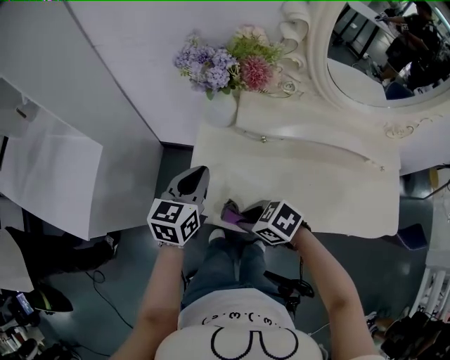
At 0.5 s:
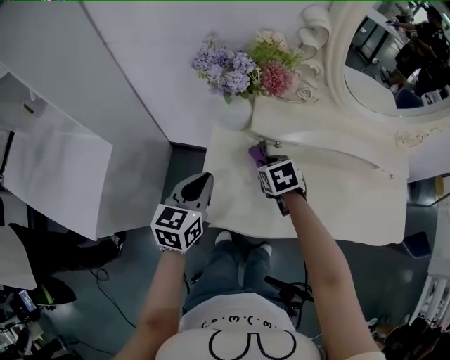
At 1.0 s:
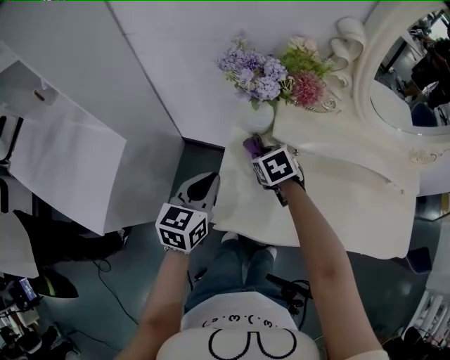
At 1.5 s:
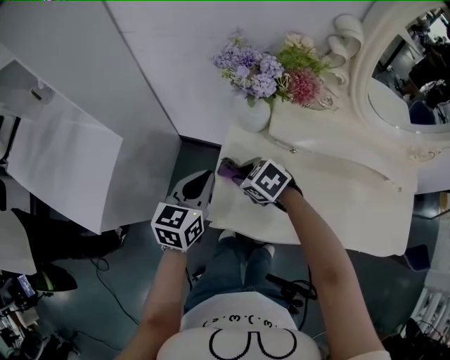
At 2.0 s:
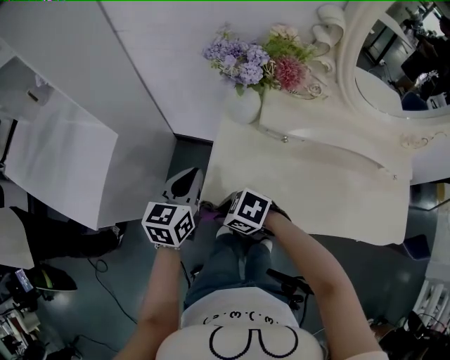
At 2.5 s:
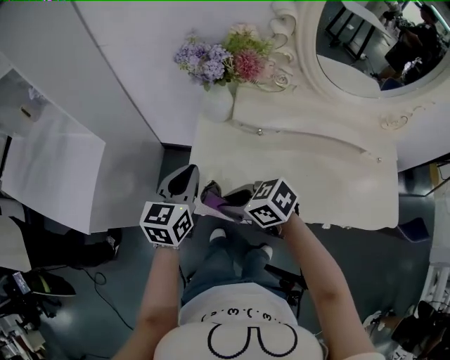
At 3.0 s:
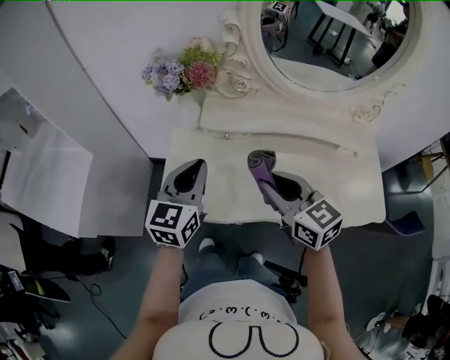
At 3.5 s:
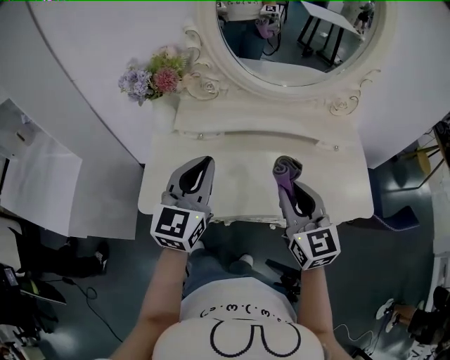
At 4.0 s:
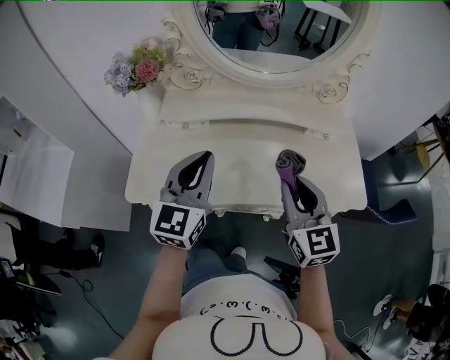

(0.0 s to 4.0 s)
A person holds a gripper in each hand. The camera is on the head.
0.0 s - 2.0 s: The left gripper moves some 10 cm.
2.0 s - 4.0 s: The right gripper moves approximately 50 cm, and tips its fingers upward by roughly 40 degrees. The left gripper moves about 40 cm, and swivels some 30 degrees.

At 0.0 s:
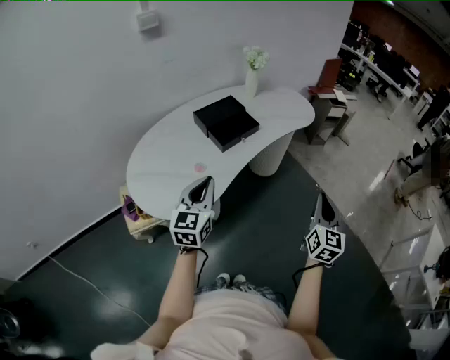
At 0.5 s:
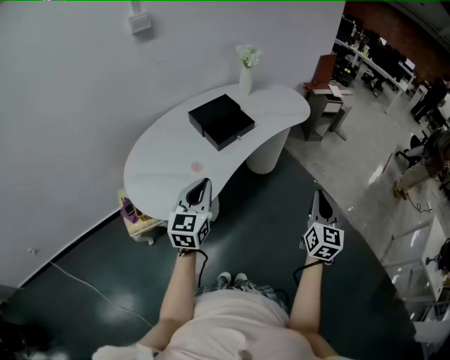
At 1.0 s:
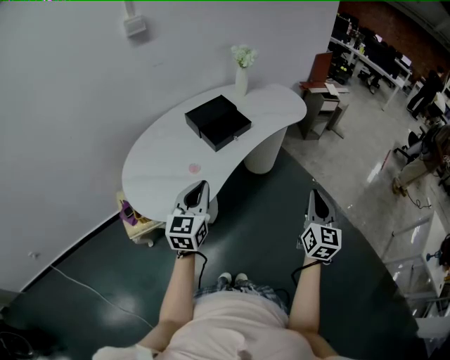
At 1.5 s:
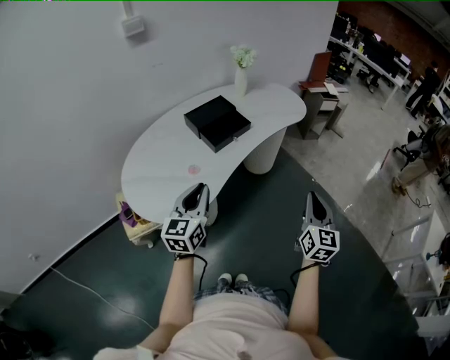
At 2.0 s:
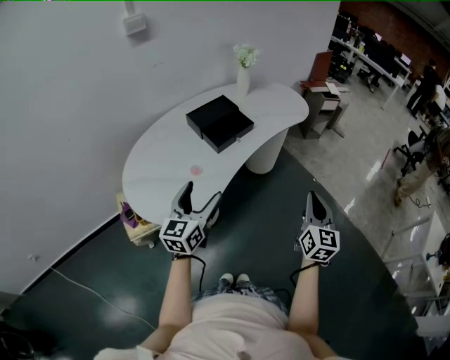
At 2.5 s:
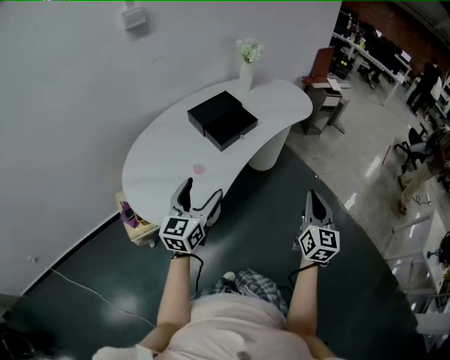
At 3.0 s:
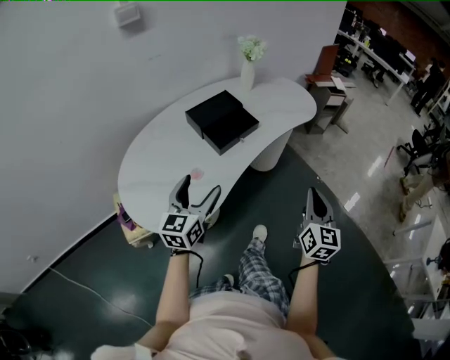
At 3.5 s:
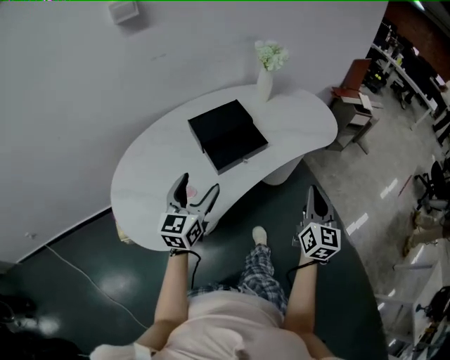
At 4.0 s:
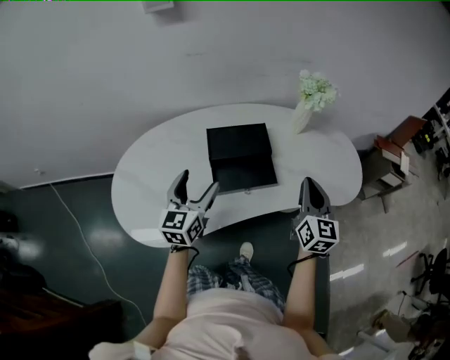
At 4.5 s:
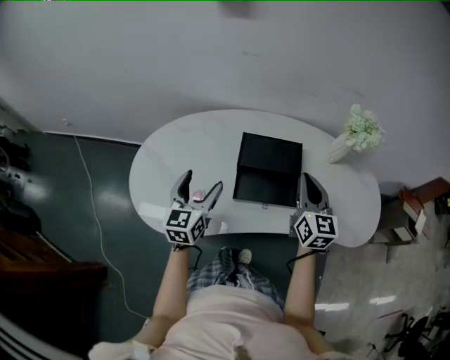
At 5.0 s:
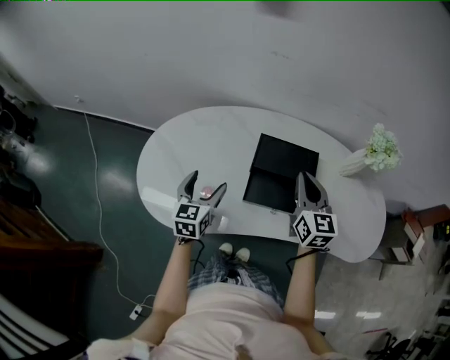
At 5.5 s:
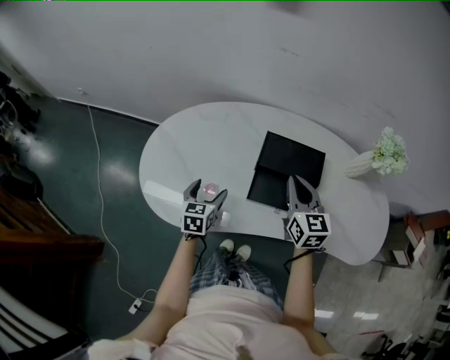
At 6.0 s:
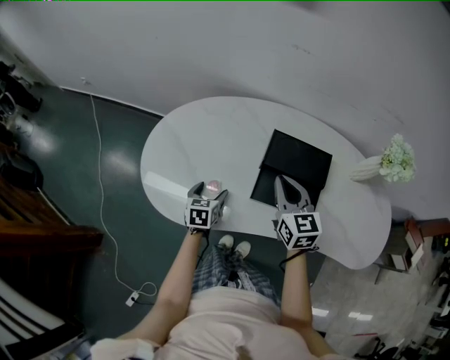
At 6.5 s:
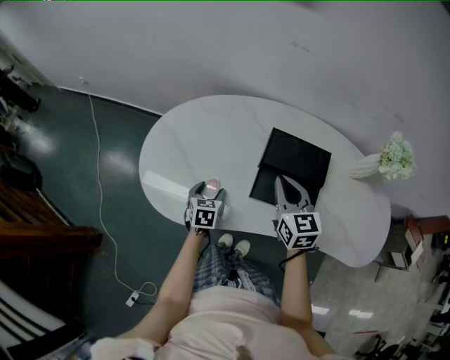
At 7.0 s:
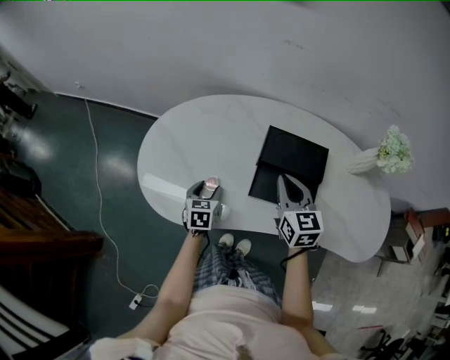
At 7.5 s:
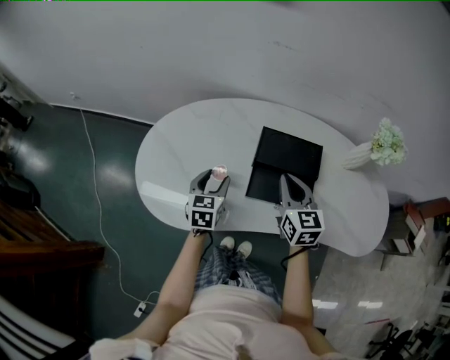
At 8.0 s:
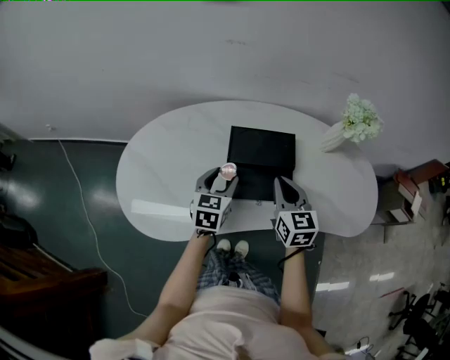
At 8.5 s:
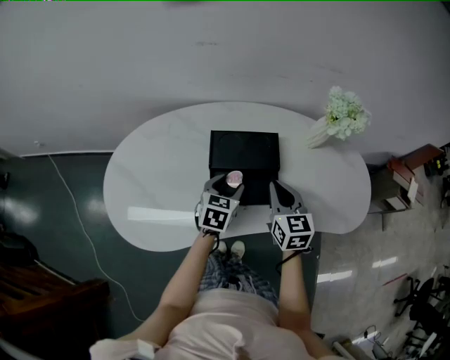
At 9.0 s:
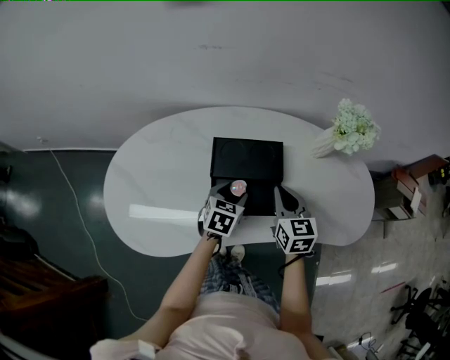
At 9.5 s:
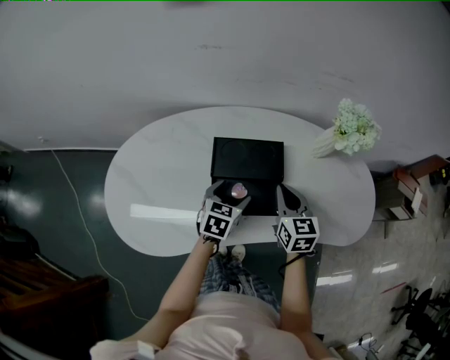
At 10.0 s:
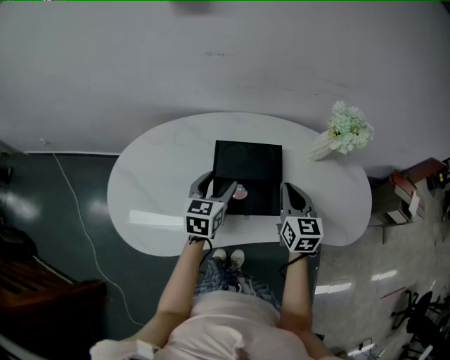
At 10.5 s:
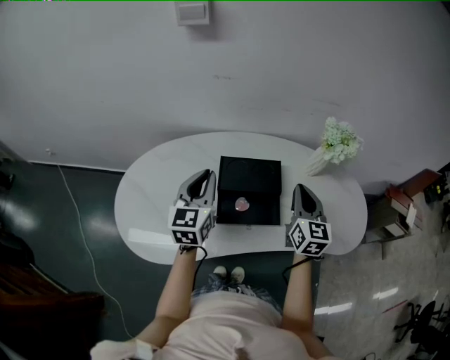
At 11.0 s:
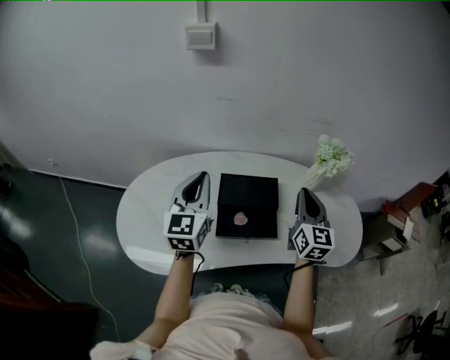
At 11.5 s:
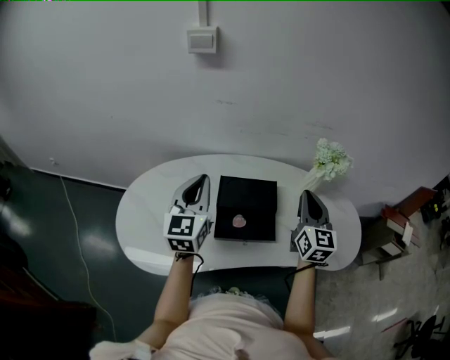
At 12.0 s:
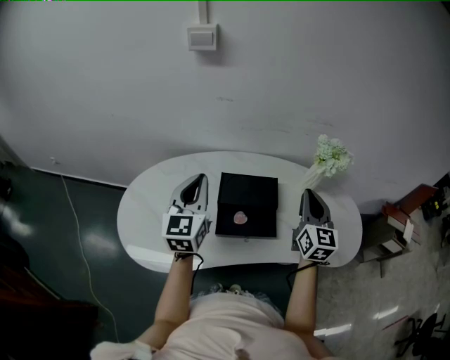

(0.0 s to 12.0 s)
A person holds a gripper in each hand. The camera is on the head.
0.0 s - 2.0 s: The left gripper opens its fingers.
2.0 s - 4.0 s: The left gripper ends up some 30 cm from where it was, and rotates about 30 degrees. Meanwhile the right gripper moves about 50 cm, and swivels approximately 30 degrees.
4.0 s - 6.0 s: The left gripper is displaced downward by some 20 cm, and points its fingers roughly 30 degrees further downward, while the right gripper shifts by some 25 cm, and rotates roughly 40 degrees.
6.0 s - 8.0 s: The left gripper goes some 20 cm to the right and upward, swivels some 30 degrees, and closes up; the right gripper shifts some 10 cm to the right.
8.0 s - 10.0 s: The right gripper heads to the right, covering about 5 cm.
10.0 s - 12.0 s: The two grippers go some 15 cm upward. The right gripper swivels approximately 20 degrees, while the left gripper changes its angle by some 30 degrees, and closes up.

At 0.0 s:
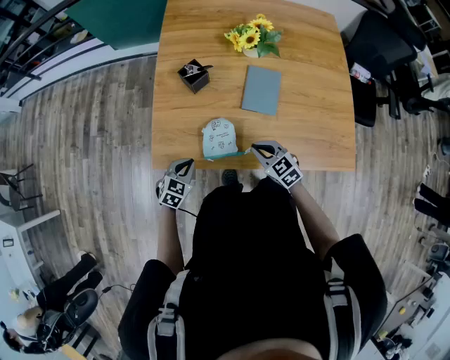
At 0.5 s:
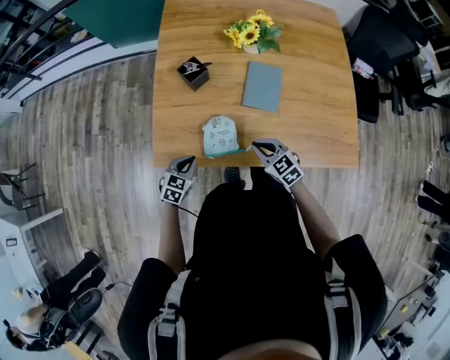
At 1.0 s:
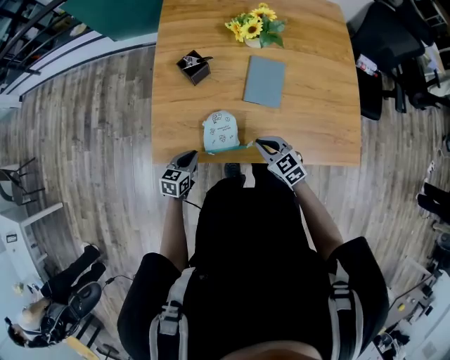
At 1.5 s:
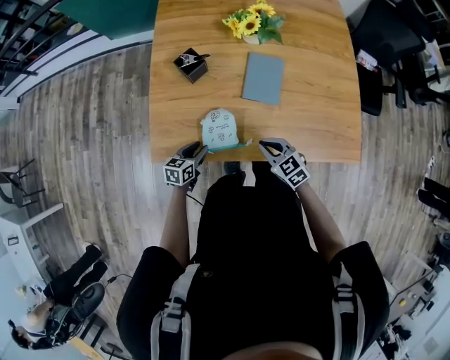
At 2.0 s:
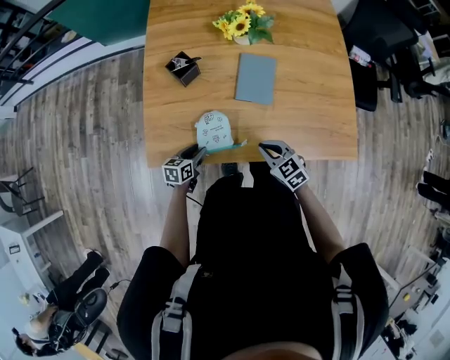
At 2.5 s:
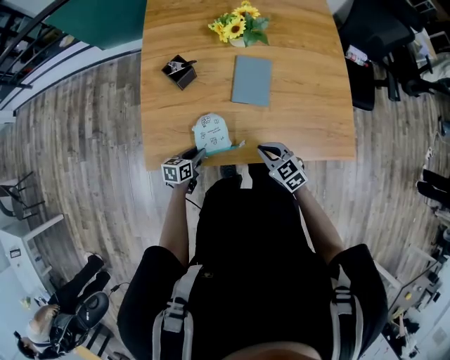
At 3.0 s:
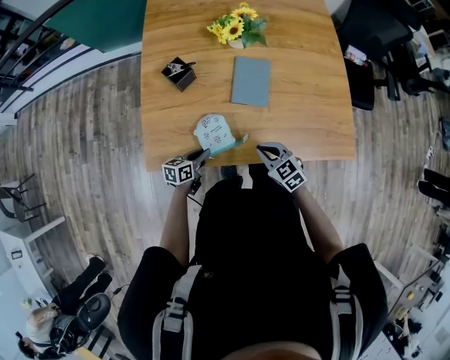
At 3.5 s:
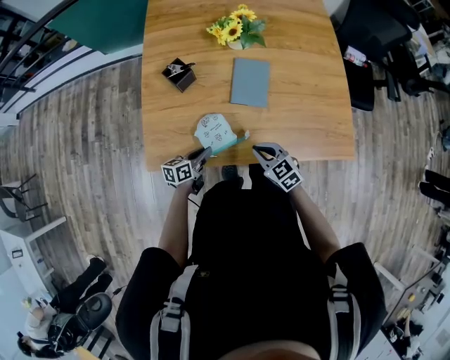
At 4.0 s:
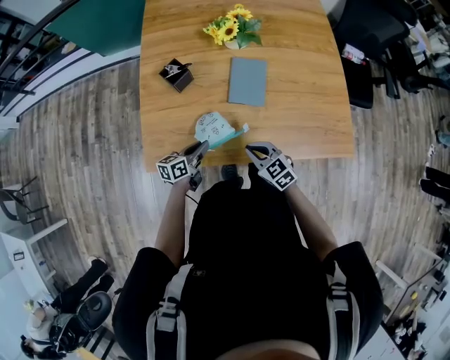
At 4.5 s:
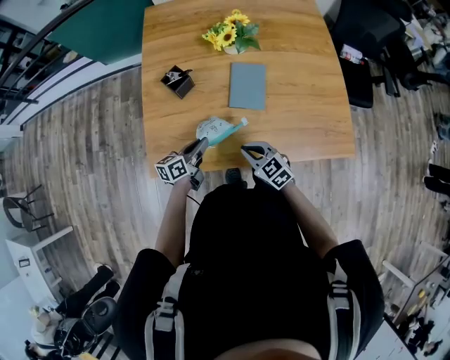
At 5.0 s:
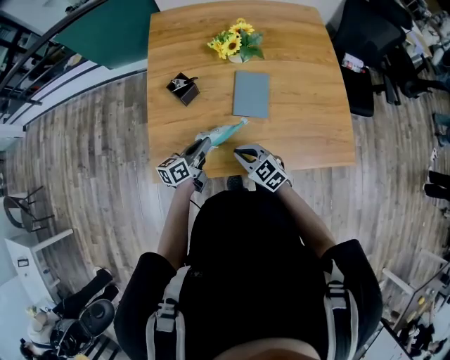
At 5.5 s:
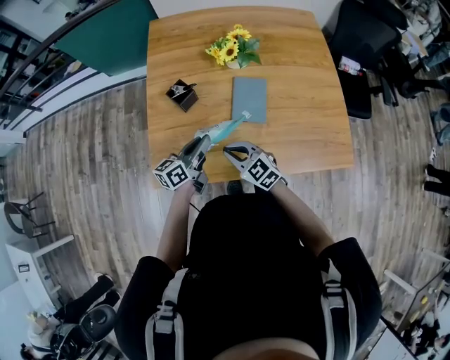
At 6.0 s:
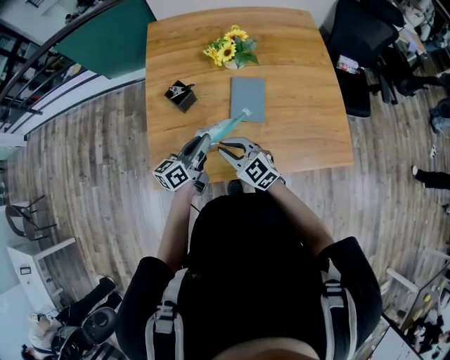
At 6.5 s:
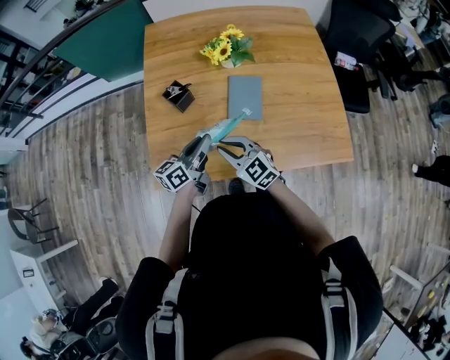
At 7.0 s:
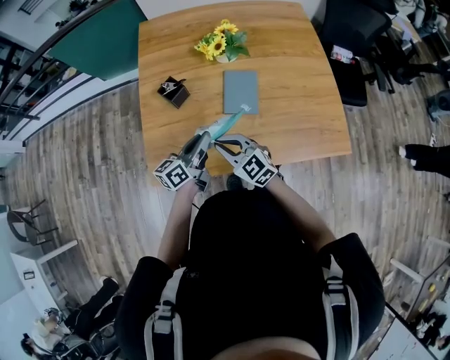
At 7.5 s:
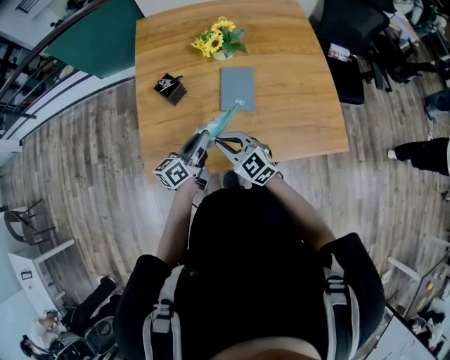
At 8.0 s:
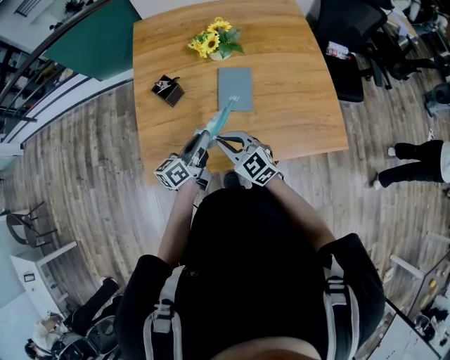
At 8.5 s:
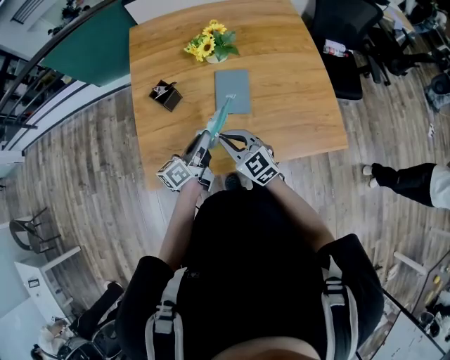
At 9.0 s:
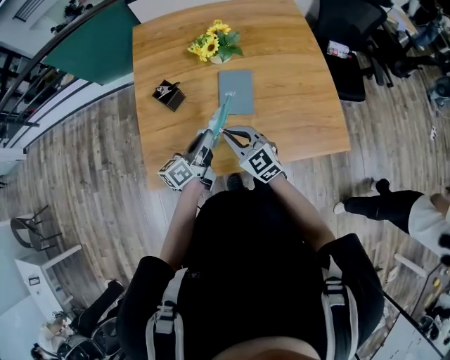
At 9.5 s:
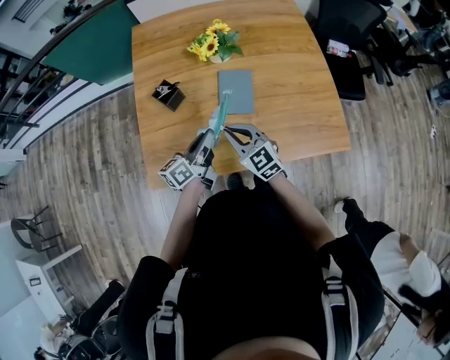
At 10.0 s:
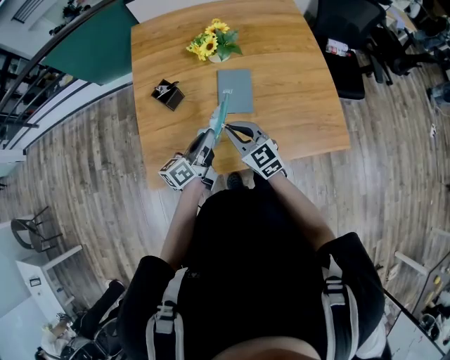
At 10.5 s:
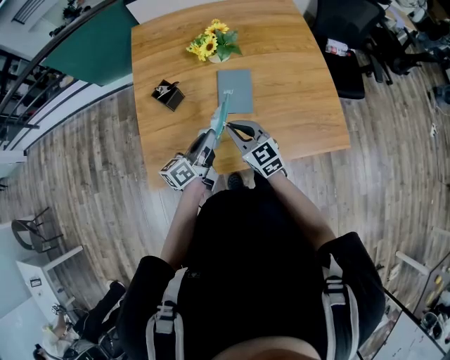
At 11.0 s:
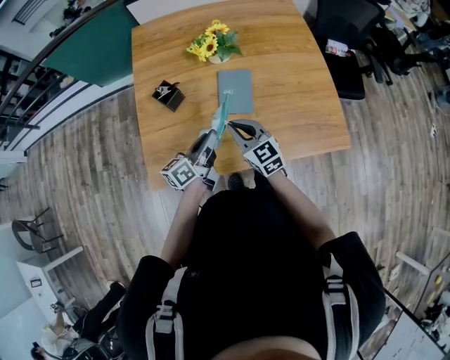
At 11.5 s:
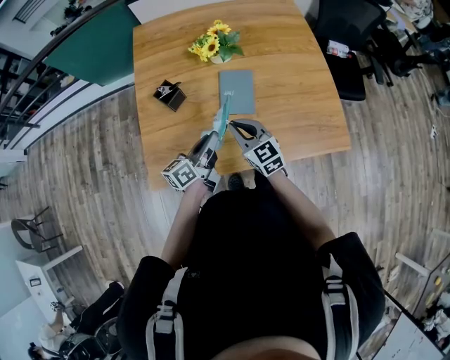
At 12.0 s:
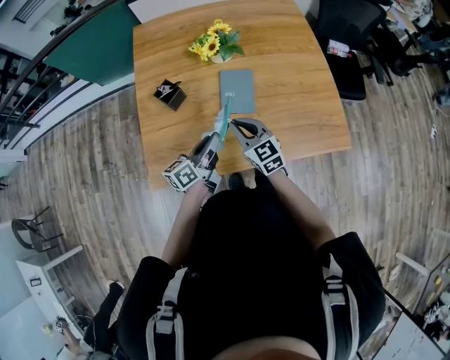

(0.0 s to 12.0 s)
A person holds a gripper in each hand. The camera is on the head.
0.0 s - 2.0 s: The left gripper goes approximately 10 cm downward, turns by some 40 degrees, and opens up.
2.0 s - 4.0 s: The left gripper travels upward by roughly 5 cm, changes its angle by approximately 20 degrees, and closes.
4.0 s - 6.0 s: The right gripper is displaced upward, to the left and forward by some 15 cm. Meanwhile the left gripper moves upward, approximately 15 cm.
6.0 s - 8.0 s: The grippers make only small movements.
8.0 s - 10.0 s: The right gripper shifts by some 5 cm.
10.0 s - 12.0 s: The grippers stay close to where they were, moving slightly.
